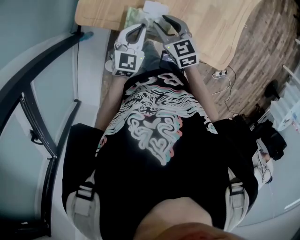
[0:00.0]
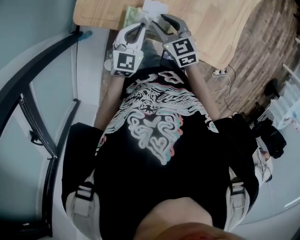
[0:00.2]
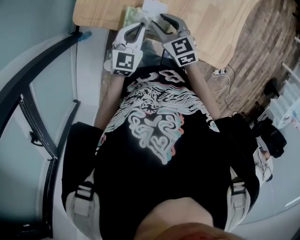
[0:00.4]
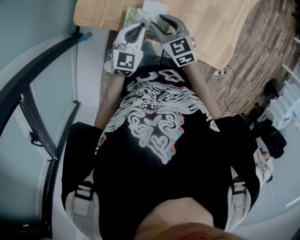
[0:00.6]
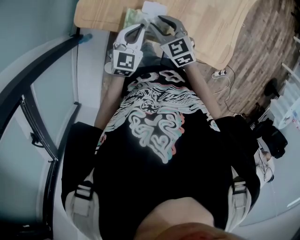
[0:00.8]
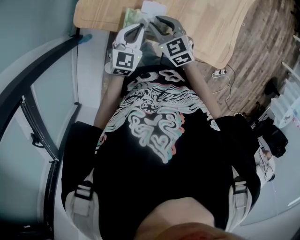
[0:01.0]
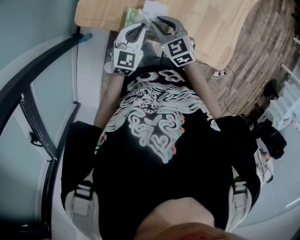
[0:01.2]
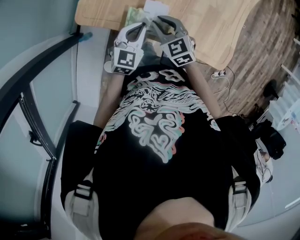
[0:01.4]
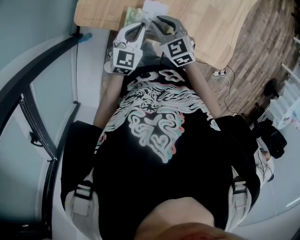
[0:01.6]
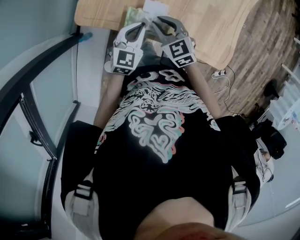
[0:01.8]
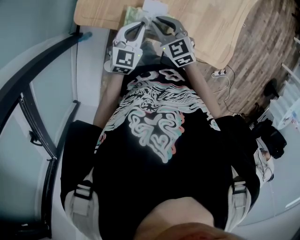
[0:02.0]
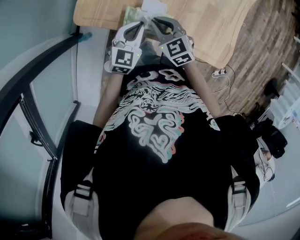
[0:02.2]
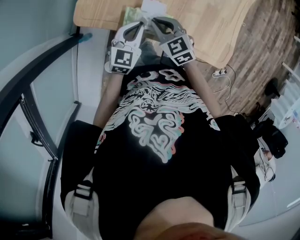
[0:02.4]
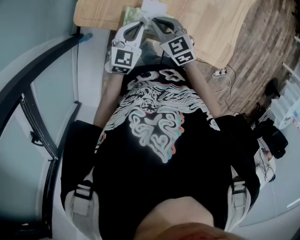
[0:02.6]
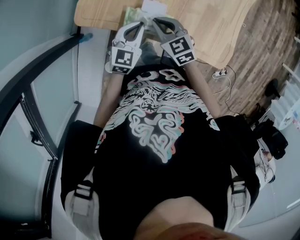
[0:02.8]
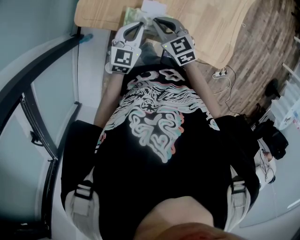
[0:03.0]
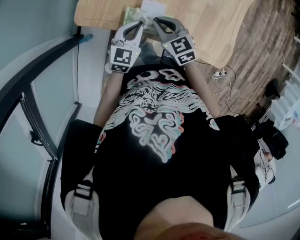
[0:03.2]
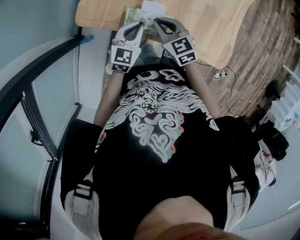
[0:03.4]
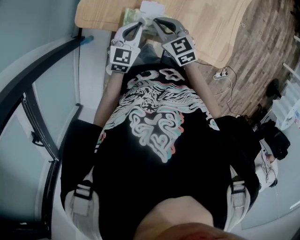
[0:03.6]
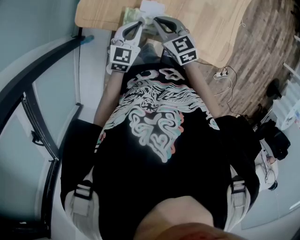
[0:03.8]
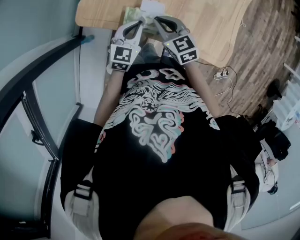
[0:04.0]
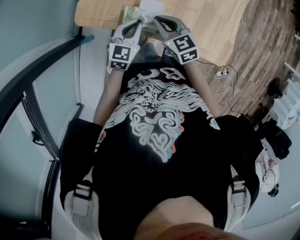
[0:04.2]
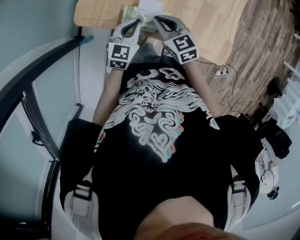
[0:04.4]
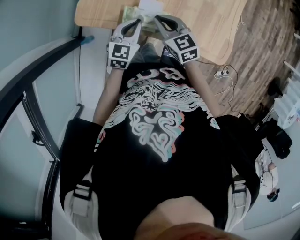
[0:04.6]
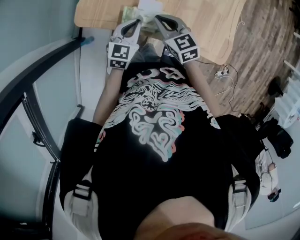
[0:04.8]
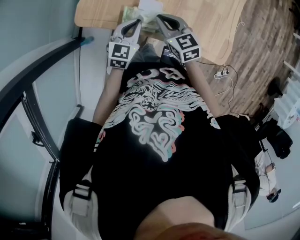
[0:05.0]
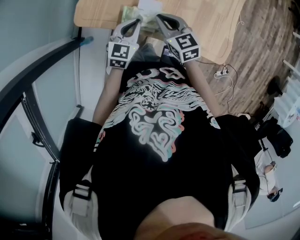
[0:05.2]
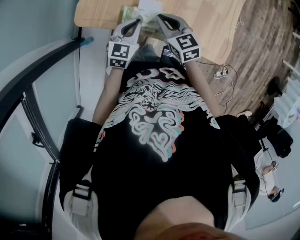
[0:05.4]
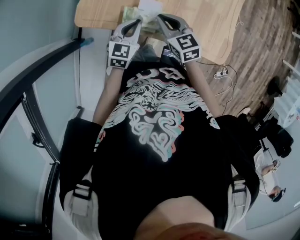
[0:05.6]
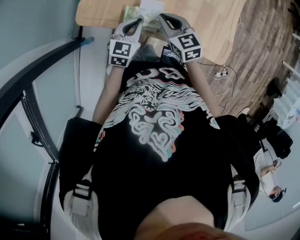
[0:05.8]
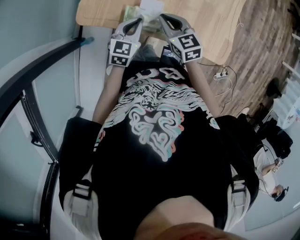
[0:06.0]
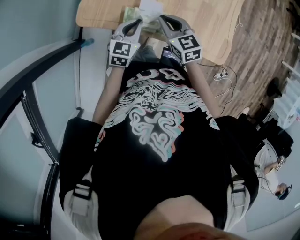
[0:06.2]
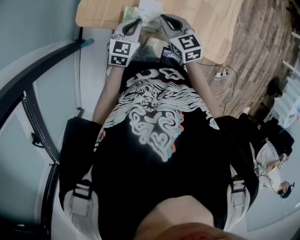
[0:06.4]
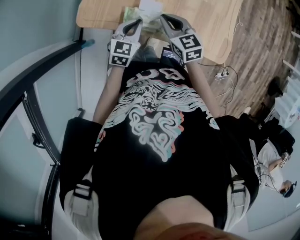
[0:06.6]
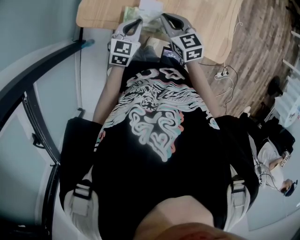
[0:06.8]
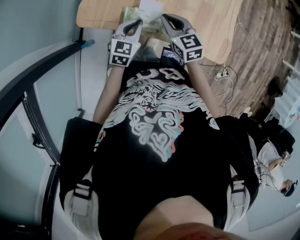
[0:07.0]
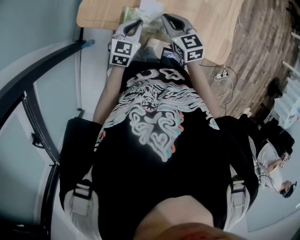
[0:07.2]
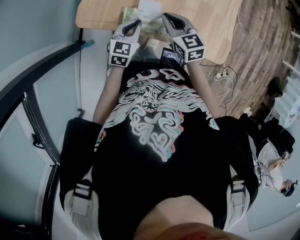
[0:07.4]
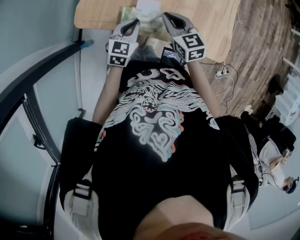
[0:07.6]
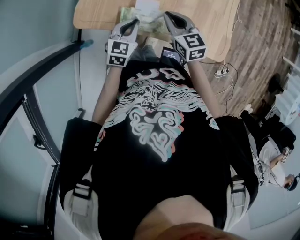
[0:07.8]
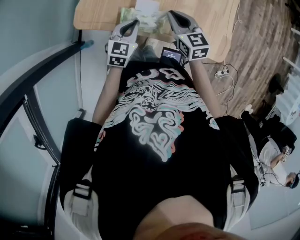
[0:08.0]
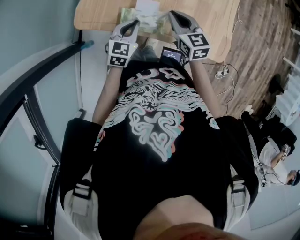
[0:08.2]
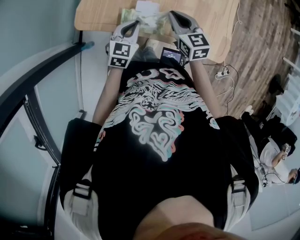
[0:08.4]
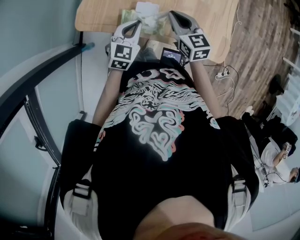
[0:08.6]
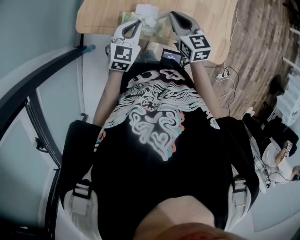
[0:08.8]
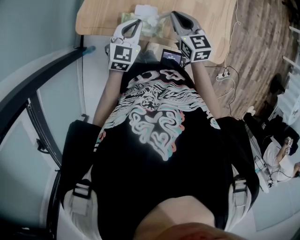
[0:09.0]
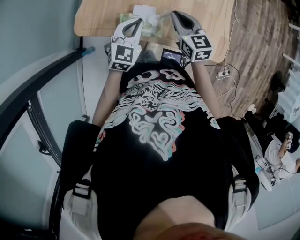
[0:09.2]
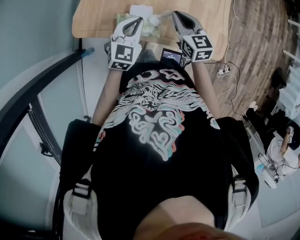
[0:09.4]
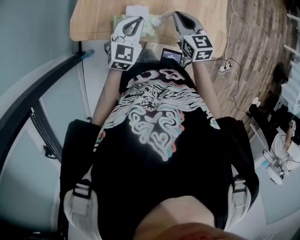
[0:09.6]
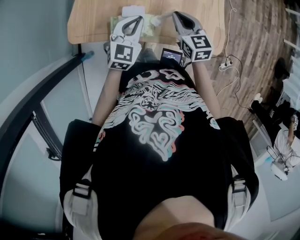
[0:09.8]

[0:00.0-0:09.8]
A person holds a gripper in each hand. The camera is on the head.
0:00.0 to 0:05.6: The grippers make only small movements.
0:05.6 to 0:07.0: Both grippers stay put.
0:07.0 to 0:08.4: The grippers make only small movements.
0:08.4 to 0:09.8: The right gripper travels to the right by about 5 cm, while the left gripper is displaced to the right and upward by some 10 cm.

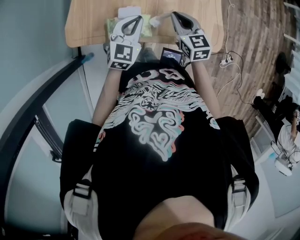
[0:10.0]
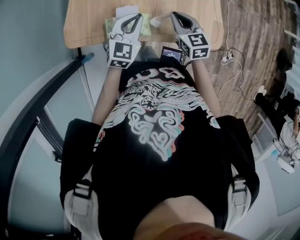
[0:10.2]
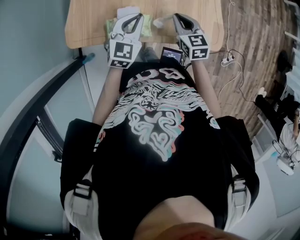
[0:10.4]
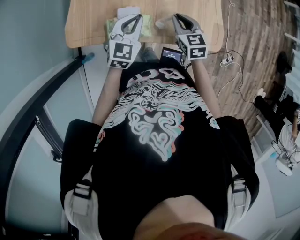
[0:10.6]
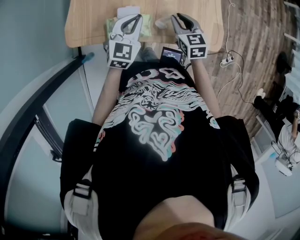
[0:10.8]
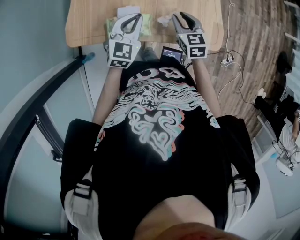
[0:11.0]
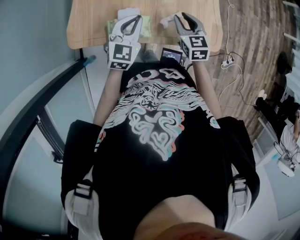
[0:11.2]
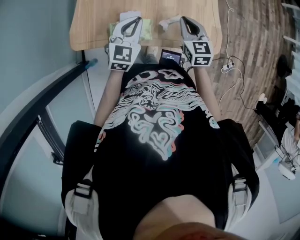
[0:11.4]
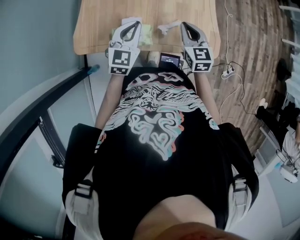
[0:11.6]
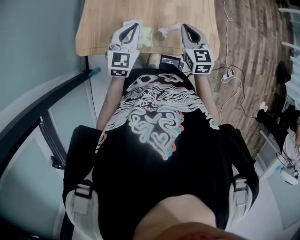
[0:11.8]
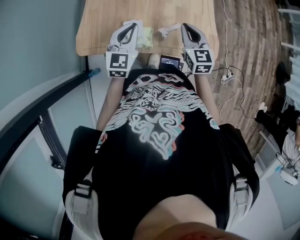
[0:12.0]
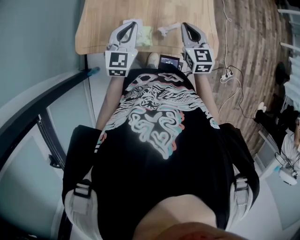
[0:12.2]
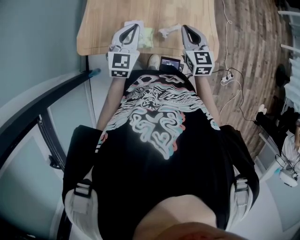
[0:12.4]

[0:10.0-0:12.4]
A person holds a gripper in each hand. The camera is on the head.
0:10.0 to 0:11.2: The right gripper opens.
0:11.2 to 0:12.4: The left gripper moves upward, some 5 cm. The right gripper shifts roughly 10 cm upward, and closes.

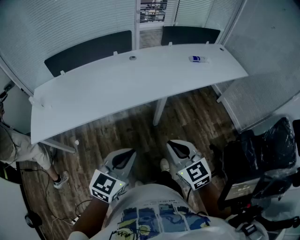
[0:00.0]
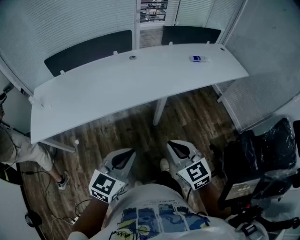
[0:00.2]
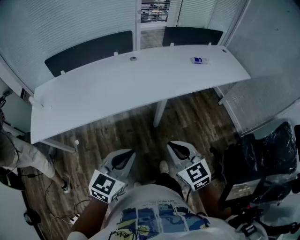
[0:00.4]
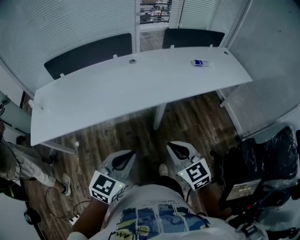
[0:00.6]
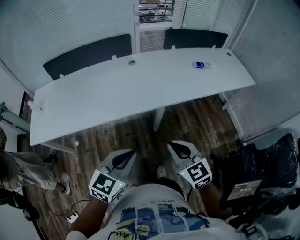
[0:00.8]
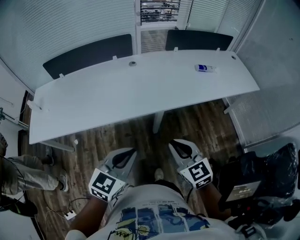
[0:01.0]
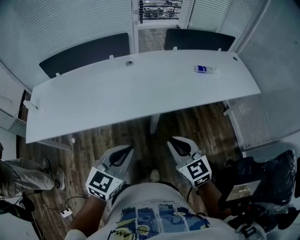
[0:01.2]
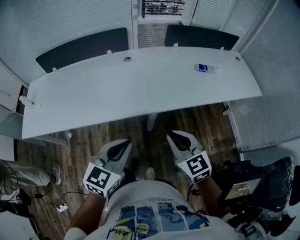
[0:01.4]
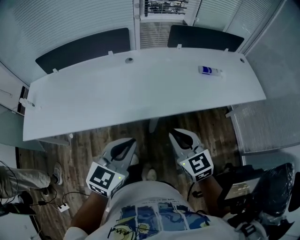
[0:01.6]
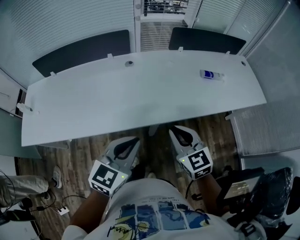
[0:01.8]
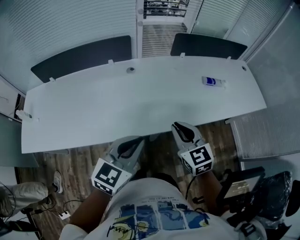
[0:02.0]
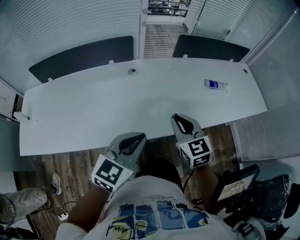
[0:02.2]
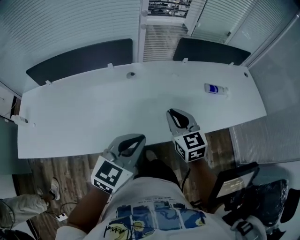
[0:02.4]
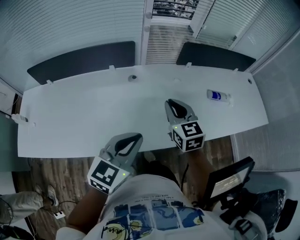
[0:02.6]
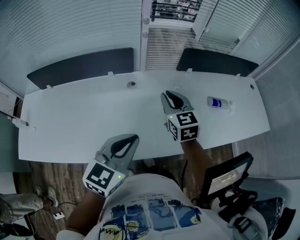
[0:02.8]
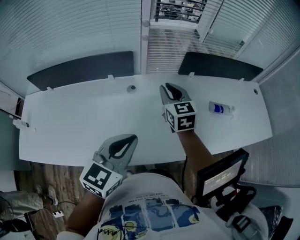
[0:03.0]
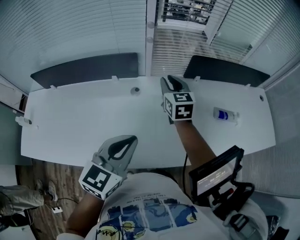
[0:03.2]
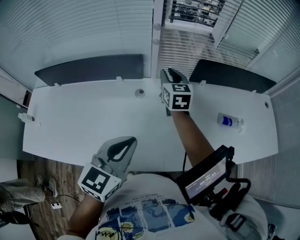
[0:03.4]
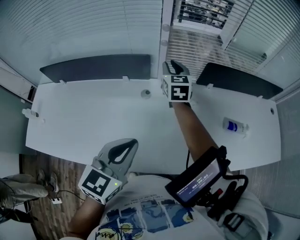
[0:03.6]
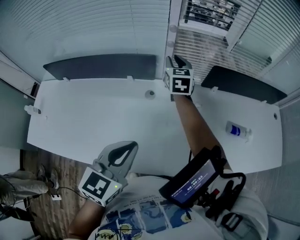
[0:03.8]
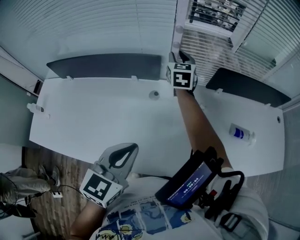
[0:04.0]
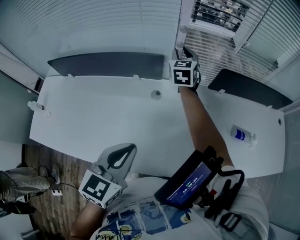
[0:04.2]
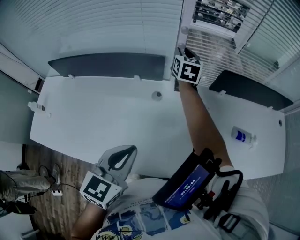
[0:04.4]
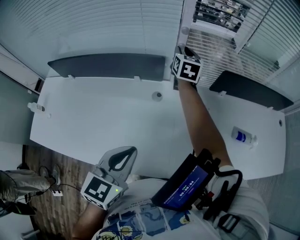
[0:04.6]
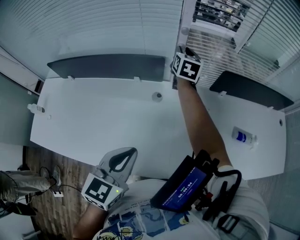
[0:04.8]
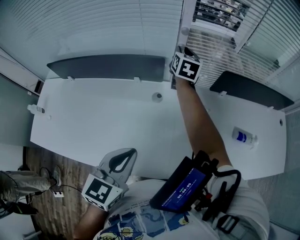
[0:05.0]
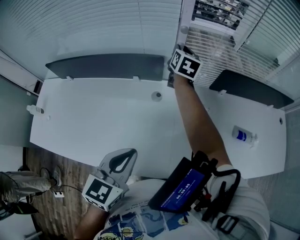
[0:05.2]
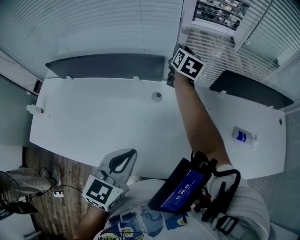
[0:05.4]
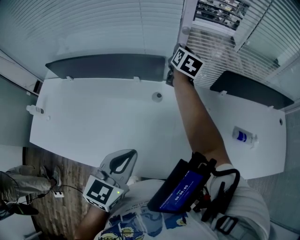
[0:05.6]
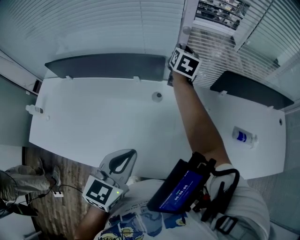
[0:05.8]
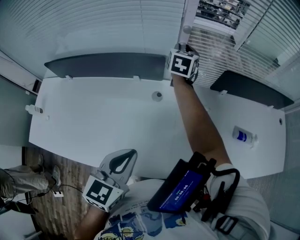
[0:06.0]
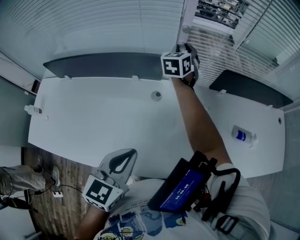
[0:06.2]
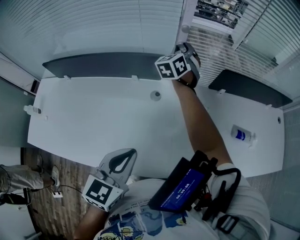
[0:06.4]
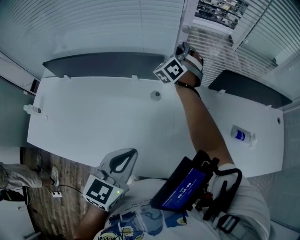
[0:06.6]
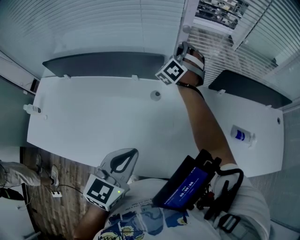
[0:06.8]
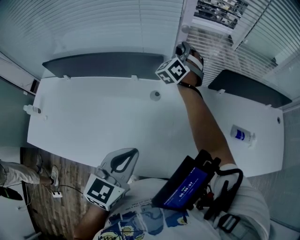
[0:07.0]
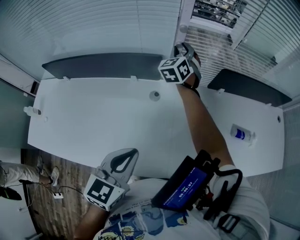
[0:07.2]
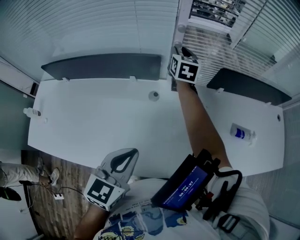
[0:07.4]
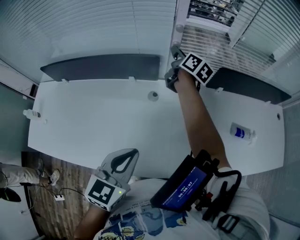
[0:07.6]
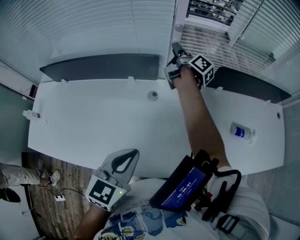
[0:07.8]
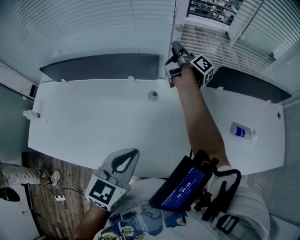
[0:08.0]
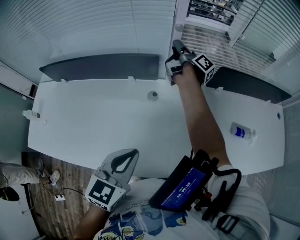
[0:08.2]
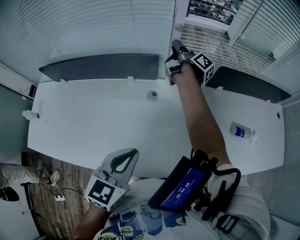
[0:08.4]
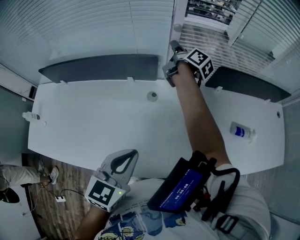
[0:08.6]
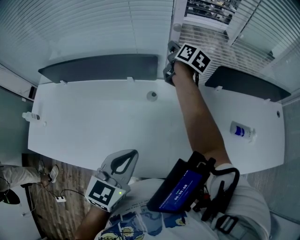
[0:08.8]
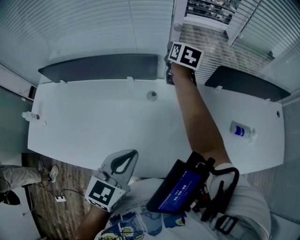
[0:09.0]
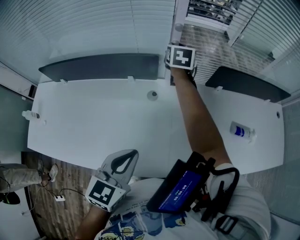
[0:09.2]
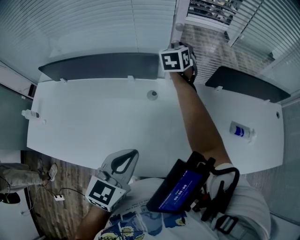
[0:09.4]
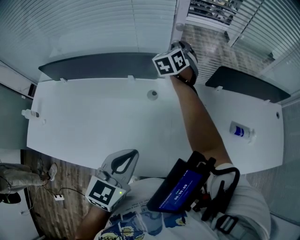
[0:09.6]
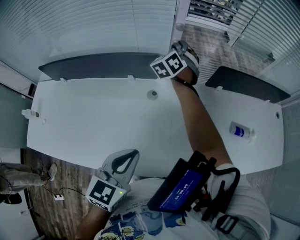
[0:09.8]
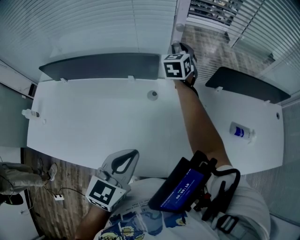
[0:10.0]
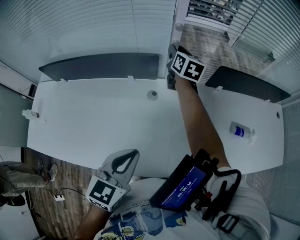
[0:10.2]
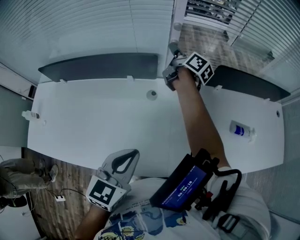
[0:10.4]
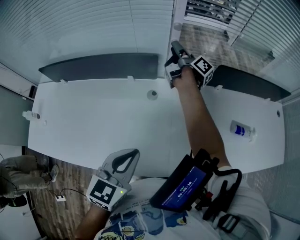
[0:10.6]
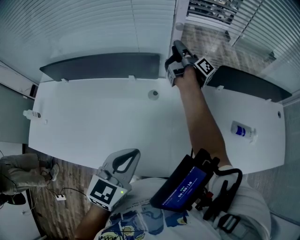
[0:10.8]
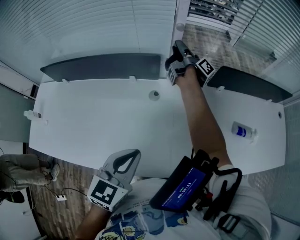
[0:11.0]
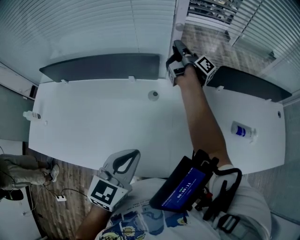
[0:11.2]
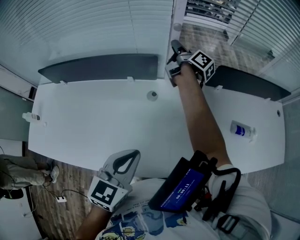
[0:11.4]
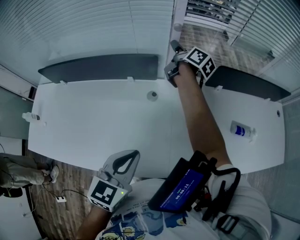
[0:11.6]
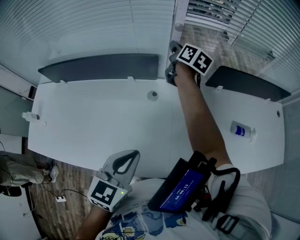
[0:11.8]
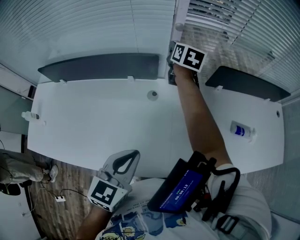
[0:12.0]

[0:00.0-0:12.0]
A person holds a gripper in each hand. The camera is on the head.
0:00.0 to 0:01.6: Both grippers travel together forward and to the right, about 30 cm.
0:01.6 to 0:03.0: The right gripper moves forward, about 40 cm. The left gripper moves forward, about 25 cm.
0:03.0 to 0:04.4: The right gripper heads forward, covering some 25 cm. Meanwhile the left gripper travels to the left by approximately 5 cm.
0:04.4 to 0:06.0: The grippers stay close to where they were, moving slightly.
0:06.0 to 0:07.6: The right gripper twists some 40 degrees clockwise, seen from behind.
0:07.6 to 0:09.0: The right gripper swivels roughly 30 degrees.
0:09.0 to 0:10.4: The right gripper swivels some 40 degrees.
0:10.4 to 0:12.0: The right gripper swivels roughly 40 degrees.
